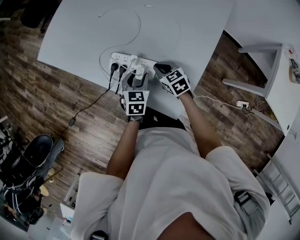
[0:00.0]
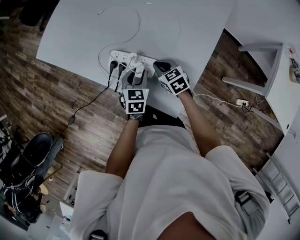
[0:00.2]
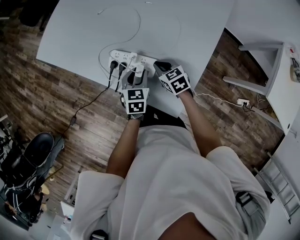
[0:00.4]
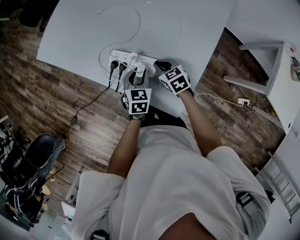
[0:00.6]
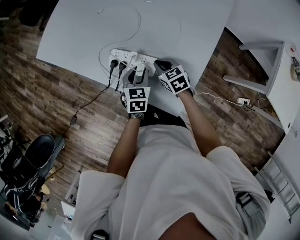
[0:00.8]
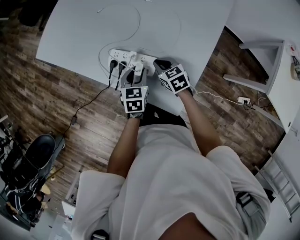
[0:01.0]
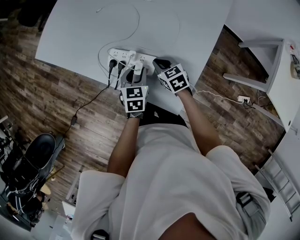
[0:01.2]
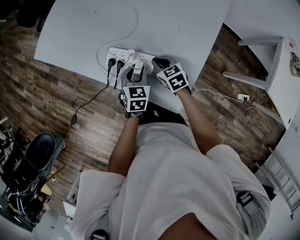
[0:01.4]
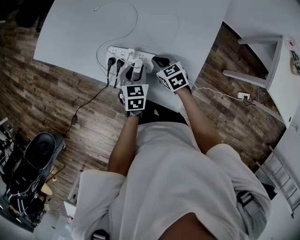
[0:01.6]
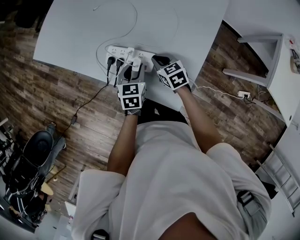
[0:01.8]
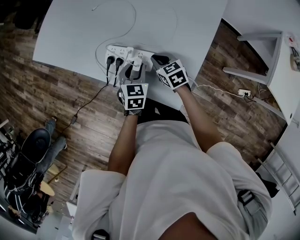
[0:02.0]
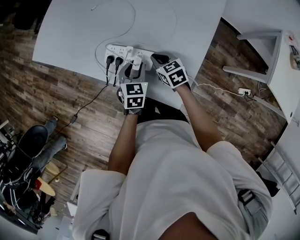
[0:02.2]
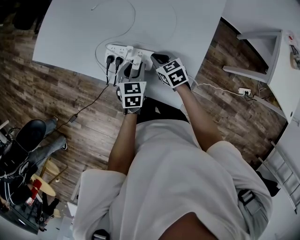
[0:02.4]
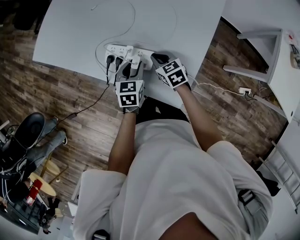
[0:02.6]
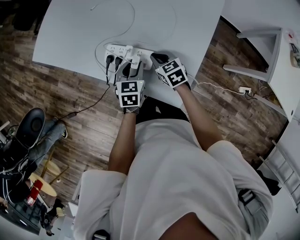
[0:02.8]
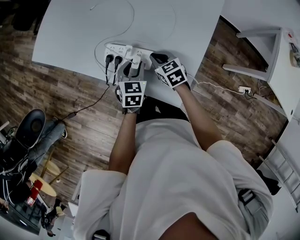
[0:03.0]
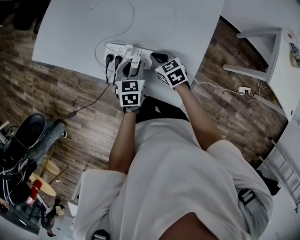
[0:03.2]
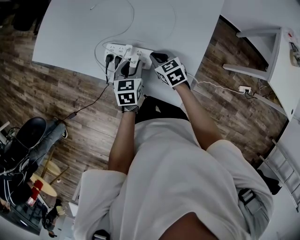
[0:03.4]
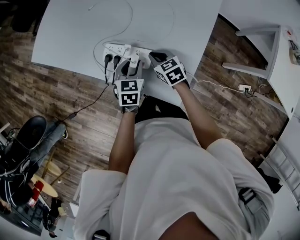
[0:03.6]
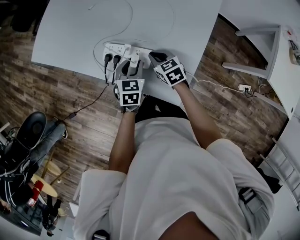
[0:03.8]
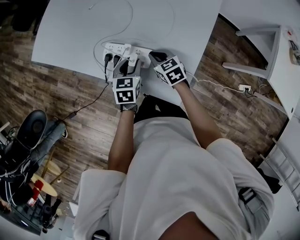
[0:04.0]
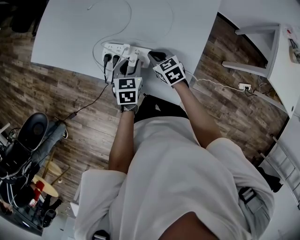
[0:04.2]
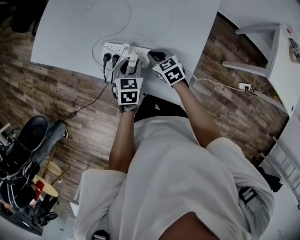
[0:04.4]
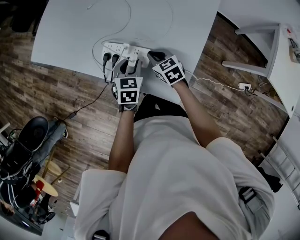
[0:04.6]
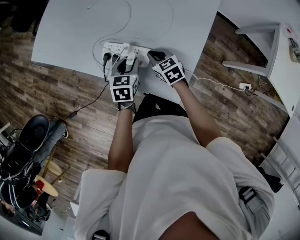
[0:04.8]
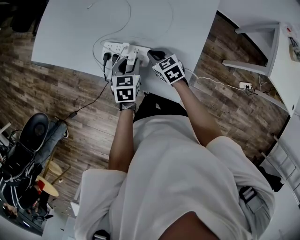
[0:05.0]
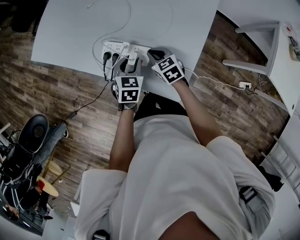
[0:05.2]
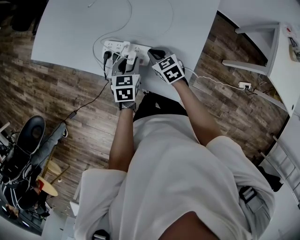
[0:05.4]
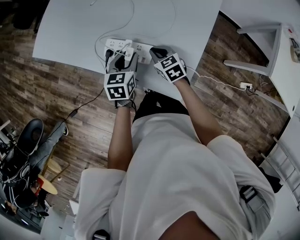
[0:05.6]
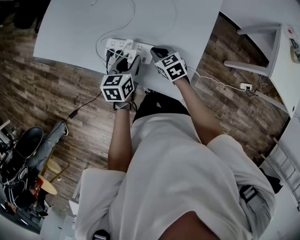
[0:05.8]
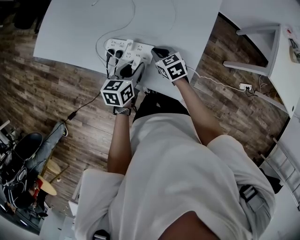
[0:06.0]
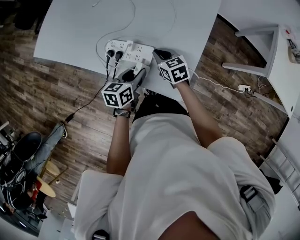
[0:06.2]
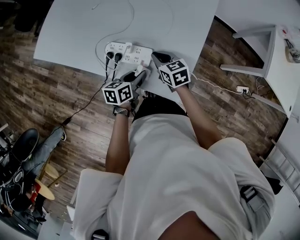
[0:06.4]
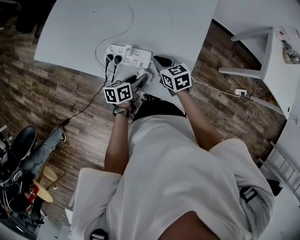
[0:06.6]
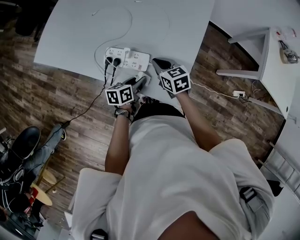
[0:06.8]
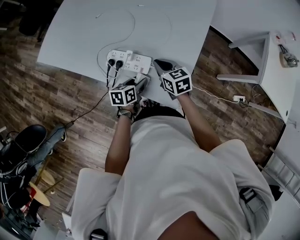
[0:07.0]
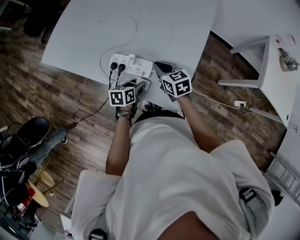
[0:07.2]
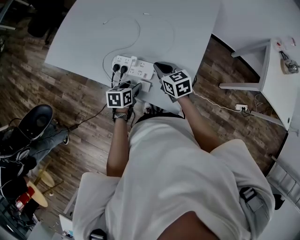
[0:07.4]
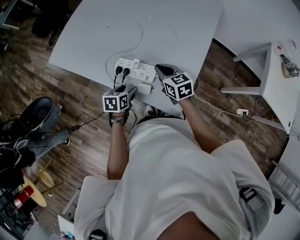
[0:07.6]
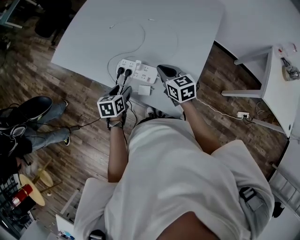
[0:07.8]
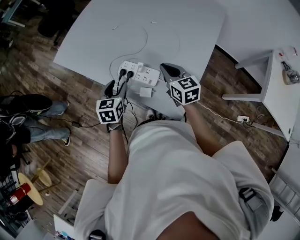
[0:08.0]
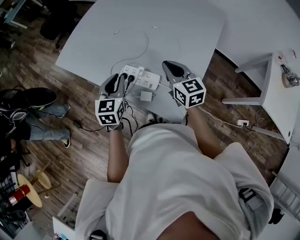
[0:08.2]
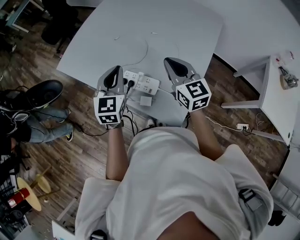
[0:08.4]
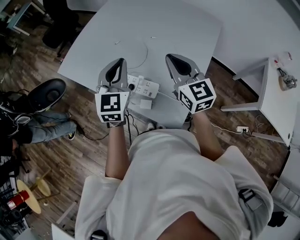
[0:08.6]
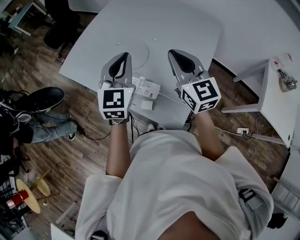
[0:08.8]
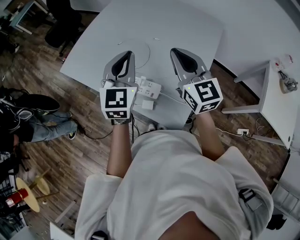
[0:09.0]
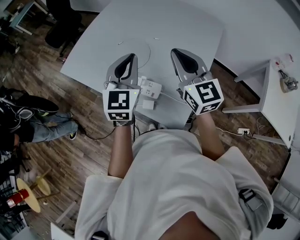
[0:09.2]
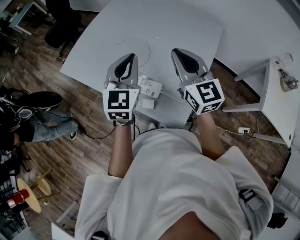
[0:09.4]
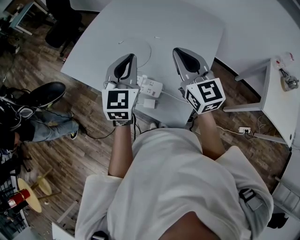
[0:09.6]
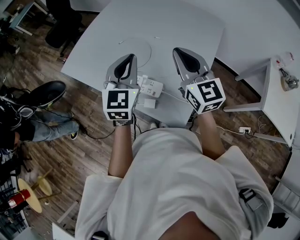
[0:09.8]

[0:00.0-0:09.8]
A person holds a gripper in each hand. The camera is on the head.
0:00.0 to 0:05.6: There are only small adjustments of the grippers.
0:05.6 to 0:07.0: The right gripper moves upward, about 10 cm. Meanwhile the left gripper goes roughly 10 cm backward and downward, and swivels approximately 30 degrees.
0:07.0 to 0:08.4: Both grippers move upward, roughly 25 cm. The right gripper rotates approximately 30 degrees, while the left gripper rotates approximately 60 degrees, and closes.
0:08.4 to 0:09.8: The grippers both shift upward by about 10 cm.

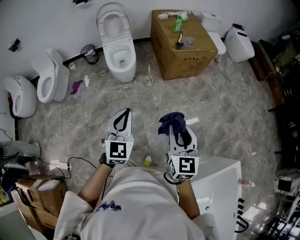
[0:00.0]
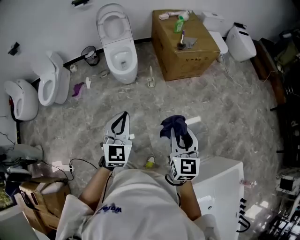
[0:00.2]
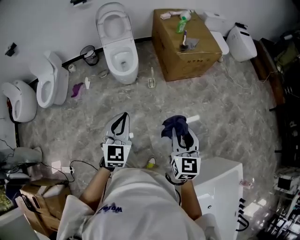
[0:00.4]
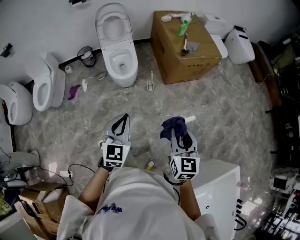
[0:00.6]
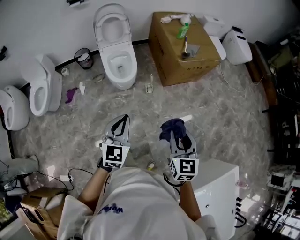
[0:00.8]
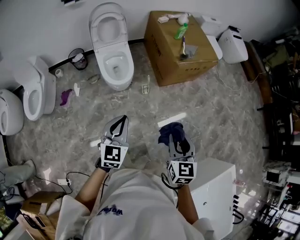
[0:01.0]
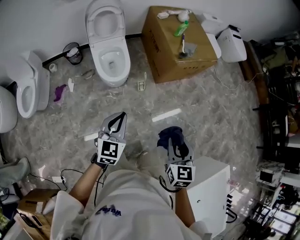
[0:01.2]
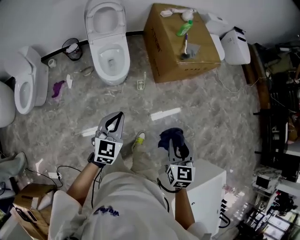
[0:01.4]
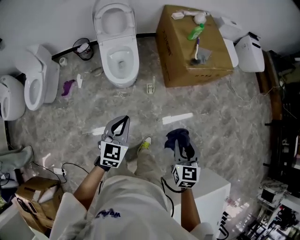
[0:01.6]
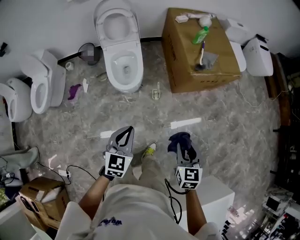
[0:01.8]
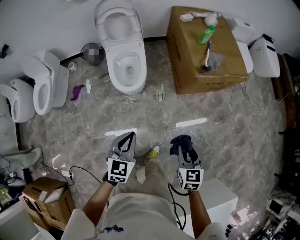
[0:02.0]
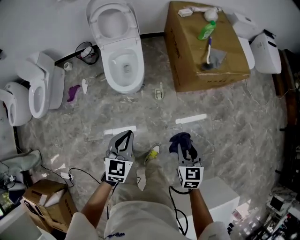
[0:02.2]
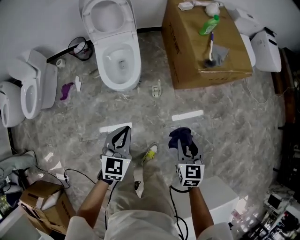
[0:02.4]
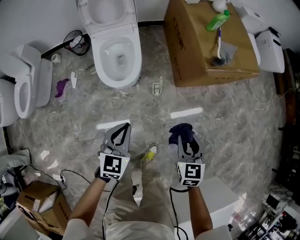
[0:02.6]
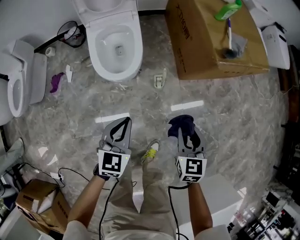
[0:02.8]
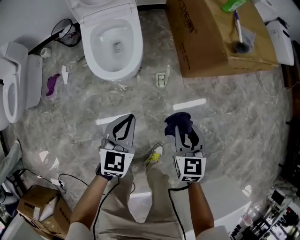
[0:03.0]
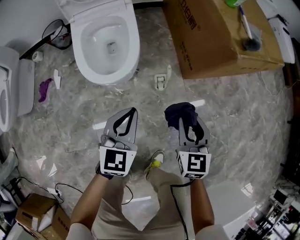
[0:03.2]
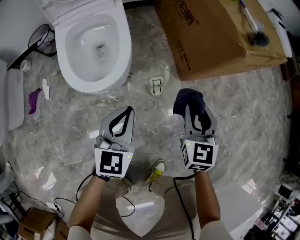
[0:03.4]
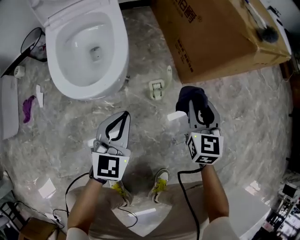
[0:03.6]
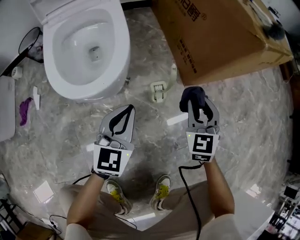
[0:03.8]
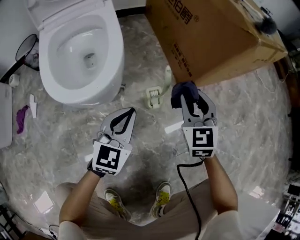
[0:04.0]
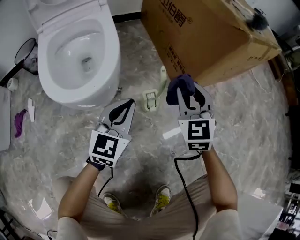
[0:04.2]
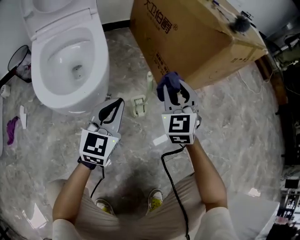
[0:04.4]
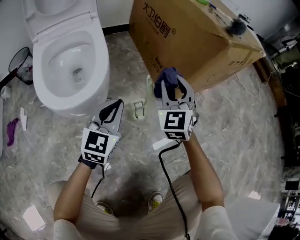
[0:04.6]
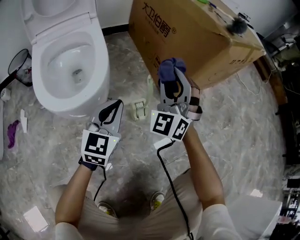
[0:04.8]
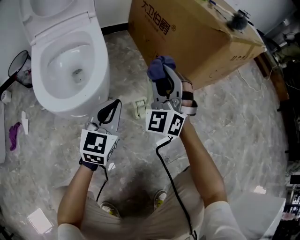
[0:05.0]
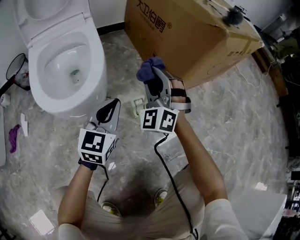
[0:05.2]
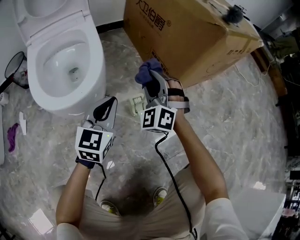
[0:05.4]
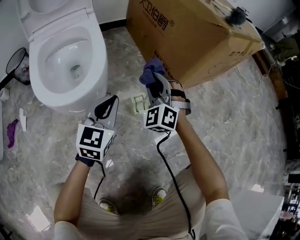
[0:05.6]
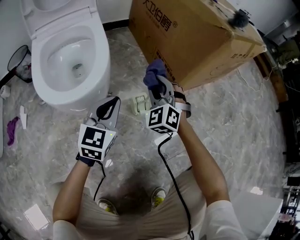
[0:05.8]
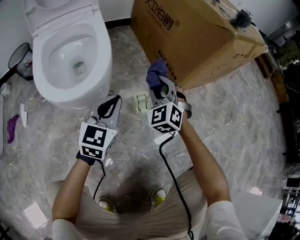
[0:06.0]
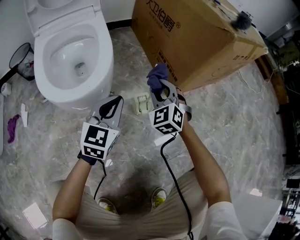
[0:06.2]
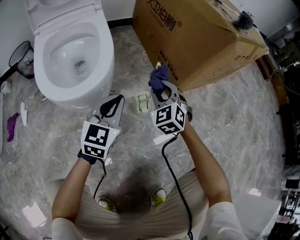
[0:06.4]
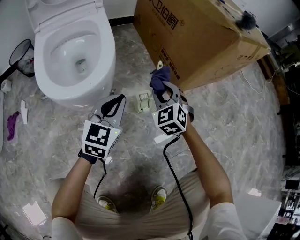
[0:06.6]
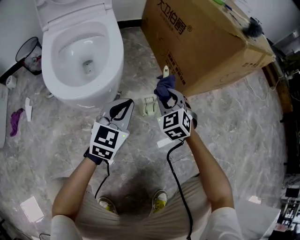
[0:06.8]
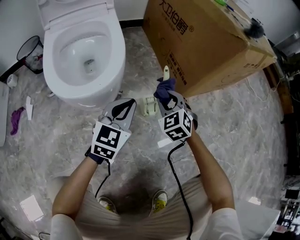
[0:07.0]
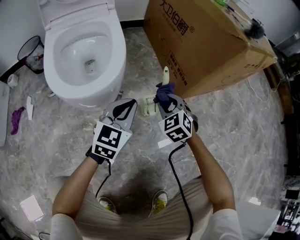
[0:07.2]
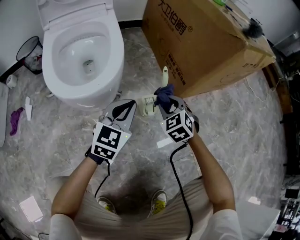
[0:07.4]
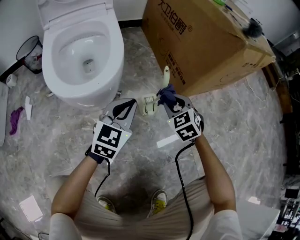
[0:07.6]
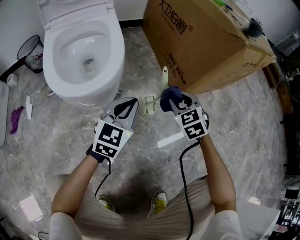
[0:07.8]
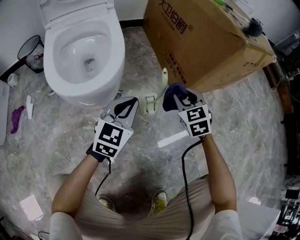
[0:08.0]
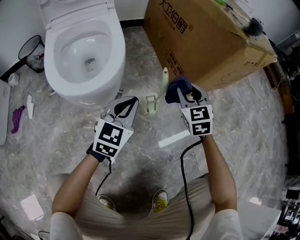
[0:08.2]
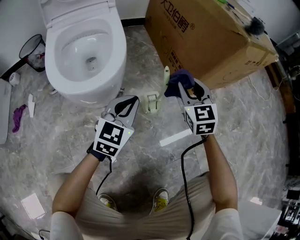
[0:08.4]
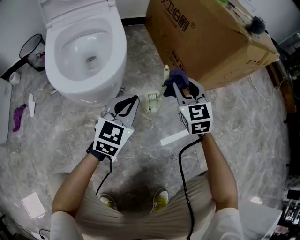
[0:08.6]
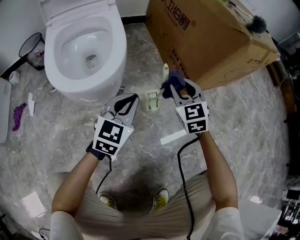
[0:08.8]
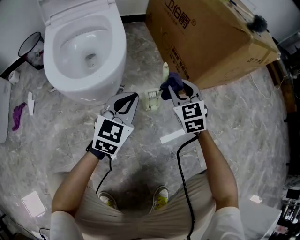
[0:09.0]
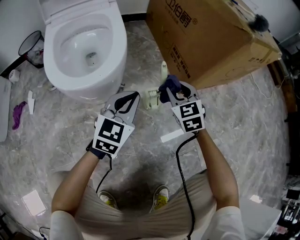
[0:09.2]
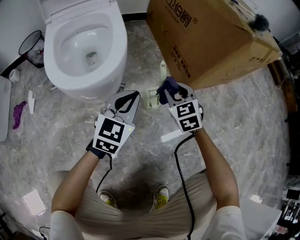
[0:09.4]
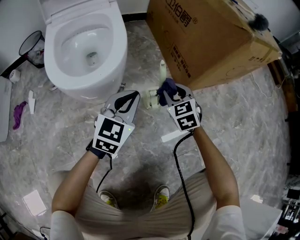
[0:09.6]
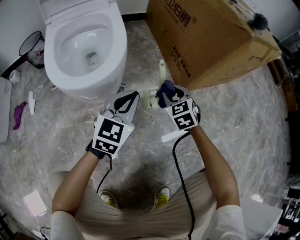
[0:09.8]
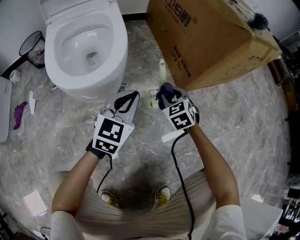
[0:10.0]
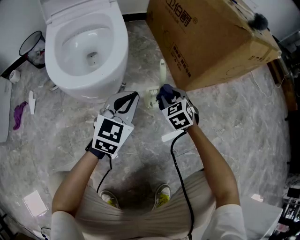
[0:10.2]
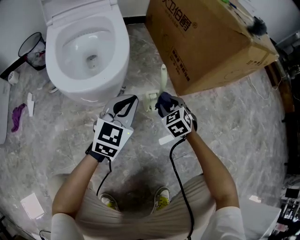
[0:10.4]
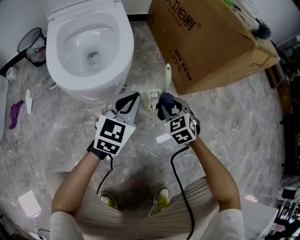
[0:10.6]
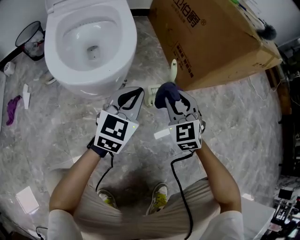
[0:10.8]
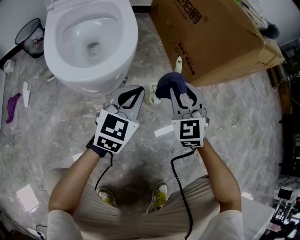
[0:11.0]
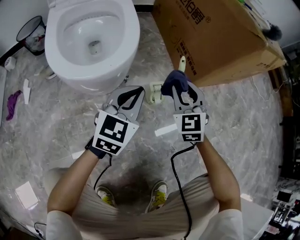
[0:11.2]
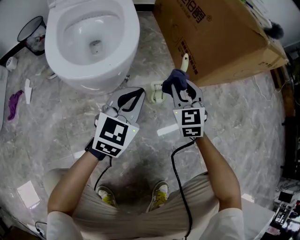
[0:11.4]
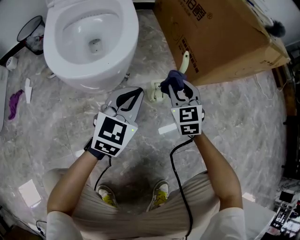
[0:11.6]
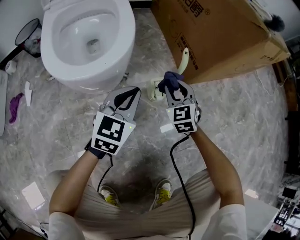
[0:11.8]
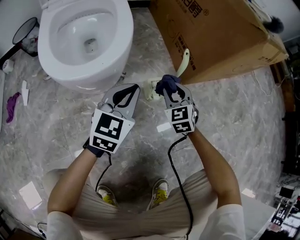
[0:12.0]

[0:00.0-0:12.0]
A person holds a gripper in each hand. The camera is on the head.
0:00.0 to 0:01.6: The left gripper heads forward, downward and to the left, covering roughly 30 cm. Meanwhile the right gripper goes approximately 25 cm forward and downward, and changes its angle by roughly 20 degrees.
0:01.6 to 0:03.0: The grippers both shift downward and forward by some 35 cm.
0:03.0 to 0:04.4: The grippers both shift downward and forward by approximately 30 cm. The right gripper turns by some 30 degrees. Meanwhile the left gripper turns by roughly 20 degrees.
0:04.4 to 0:06.0: The right gripper travels downward and to the left by some 10 cm, and rotates some 20 degrees.
0:06.0 to 0:07.6: The right gripper heads downward, covering some 5 cm, and turns by some 20 degrees.
0:09.0 to 0:10.4: The right gripper goes roughly 10 cm downward, and changes its angle by approximately 20 degrees.
0:10.4 to 0:12.0: The right gripper reaches approximately 15 cm upward, then returns.

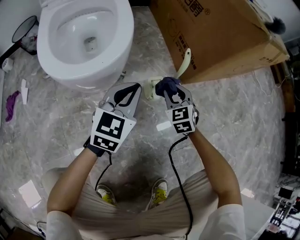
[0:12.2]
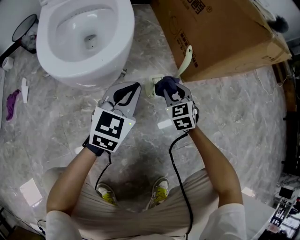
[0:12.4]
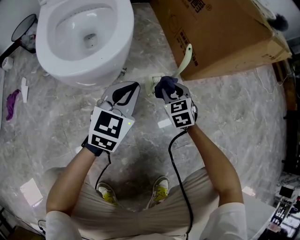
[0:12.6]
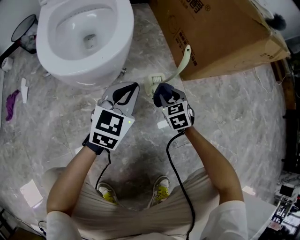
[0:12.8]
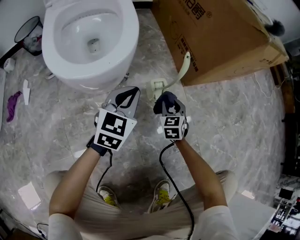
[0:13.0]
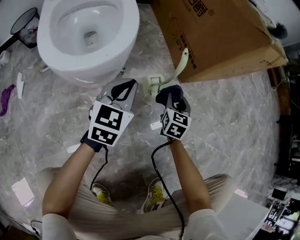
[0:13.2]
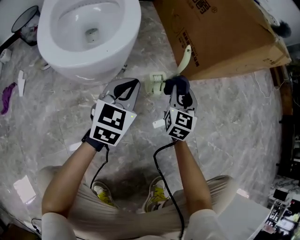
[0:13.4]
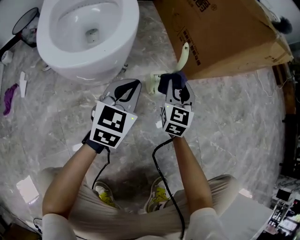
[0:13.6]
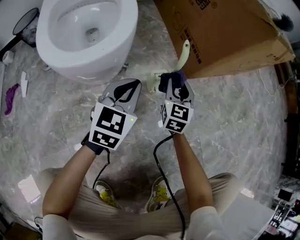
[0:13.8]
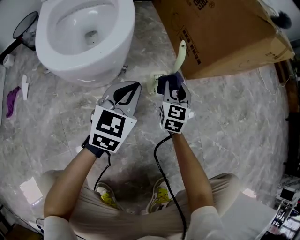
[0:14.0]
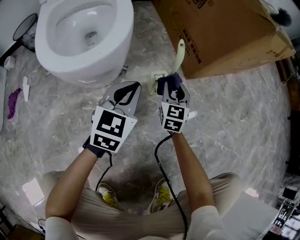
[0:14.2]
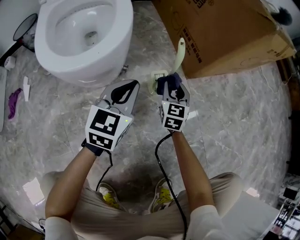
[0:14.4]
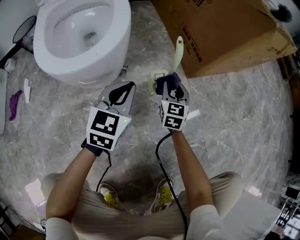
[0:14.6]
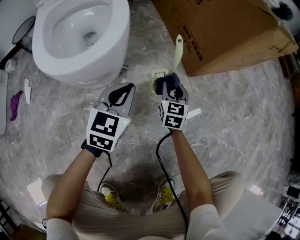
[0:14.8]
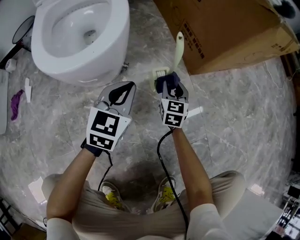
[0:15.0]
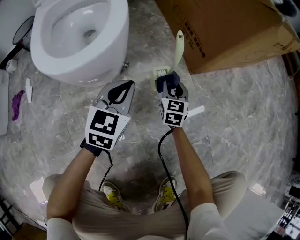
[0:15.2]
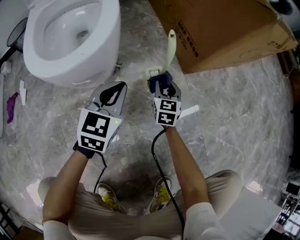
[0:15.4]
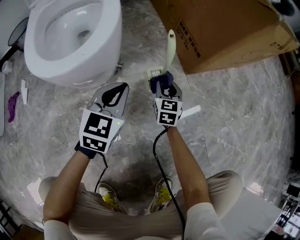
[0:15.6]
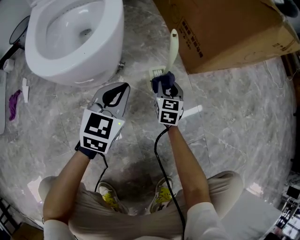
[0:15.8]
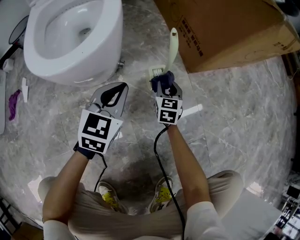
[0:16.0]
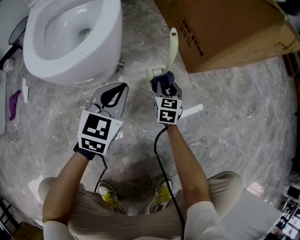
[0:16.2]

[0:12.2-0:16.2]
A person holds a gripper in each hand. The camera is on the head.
0:12.2 to 0:13.6: The right gripper swivels about 30 degrees.
0:13.6 to 0:14.8: The right gripper heads downward, covering approximately 10 cm.
0:14.8 to 0:16.2: The right gripper moves downward, approximately 5 cm.
